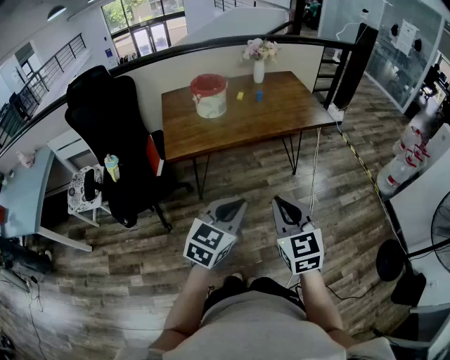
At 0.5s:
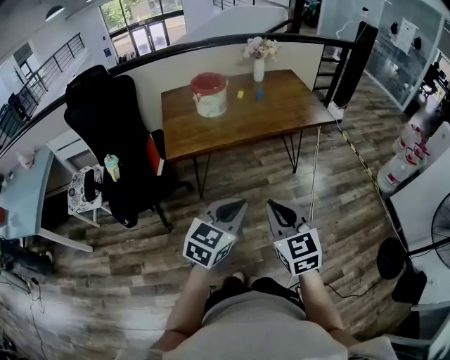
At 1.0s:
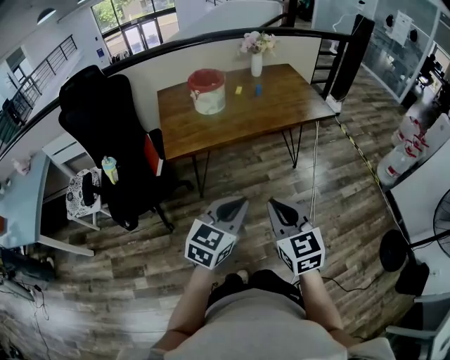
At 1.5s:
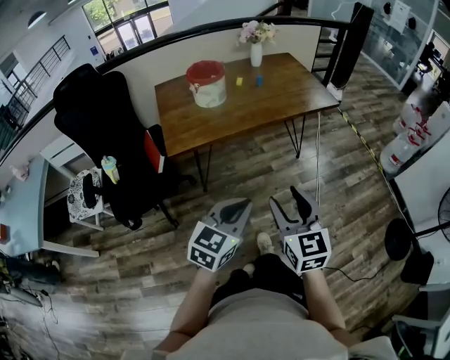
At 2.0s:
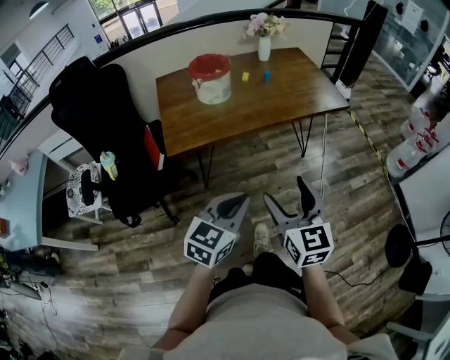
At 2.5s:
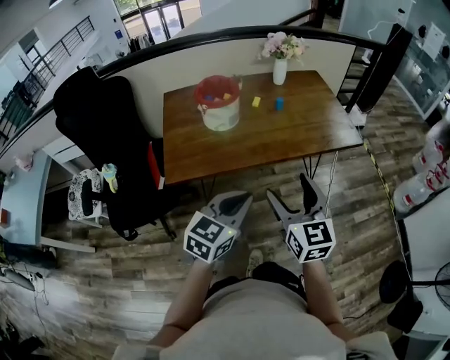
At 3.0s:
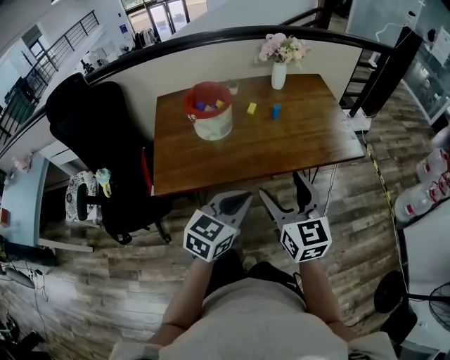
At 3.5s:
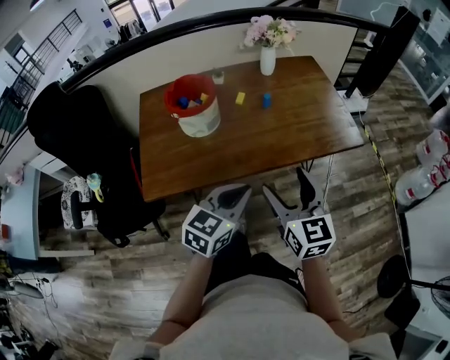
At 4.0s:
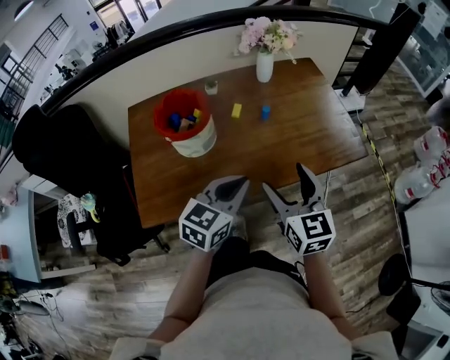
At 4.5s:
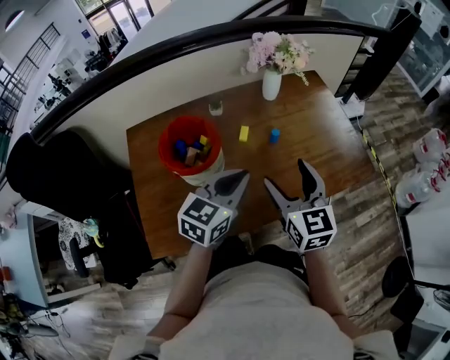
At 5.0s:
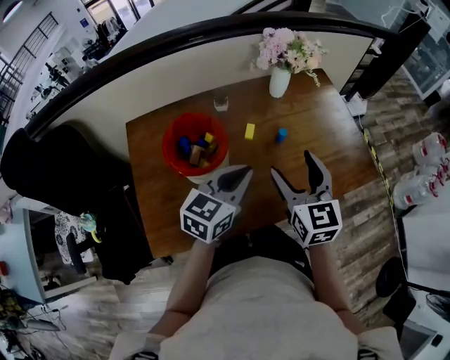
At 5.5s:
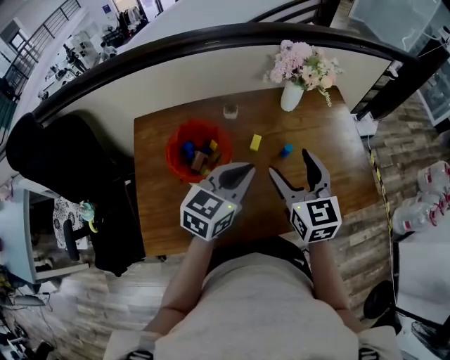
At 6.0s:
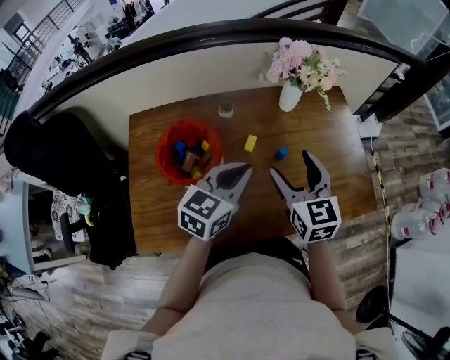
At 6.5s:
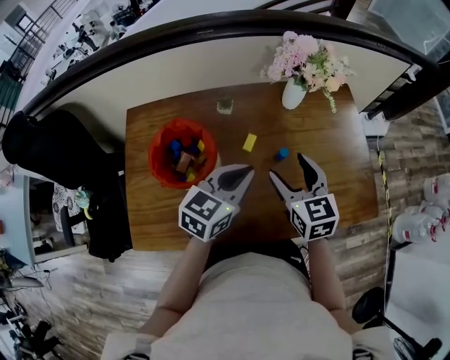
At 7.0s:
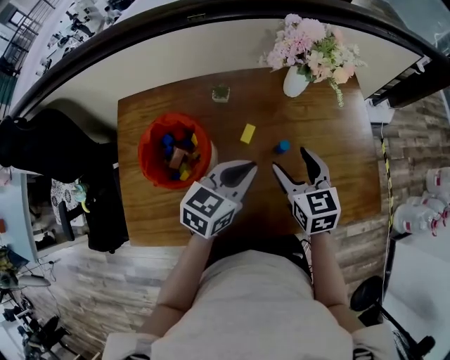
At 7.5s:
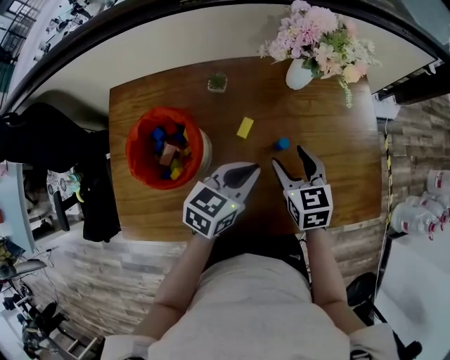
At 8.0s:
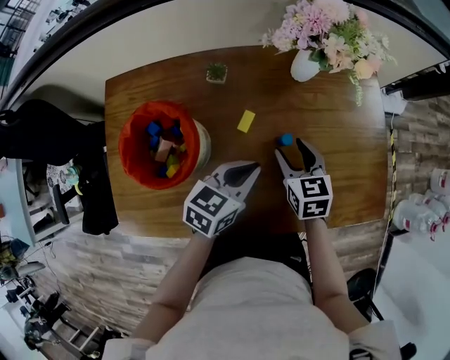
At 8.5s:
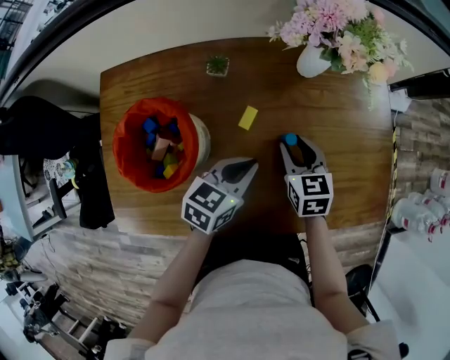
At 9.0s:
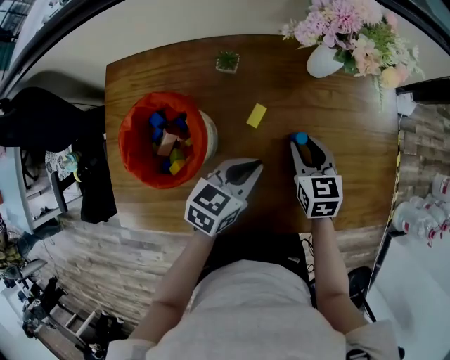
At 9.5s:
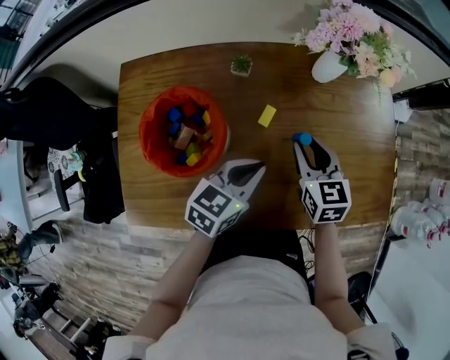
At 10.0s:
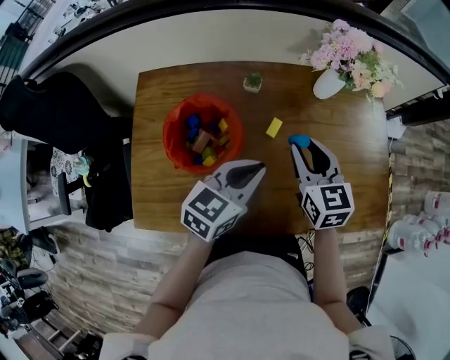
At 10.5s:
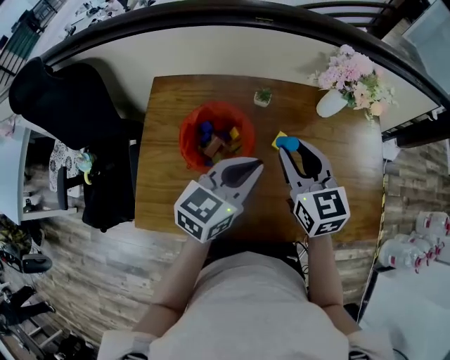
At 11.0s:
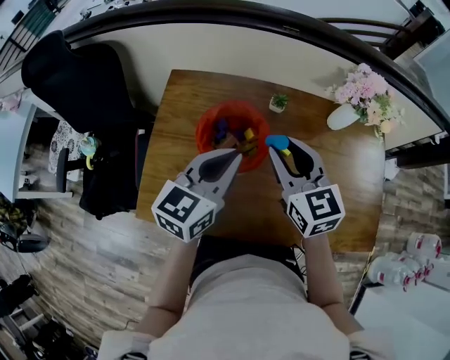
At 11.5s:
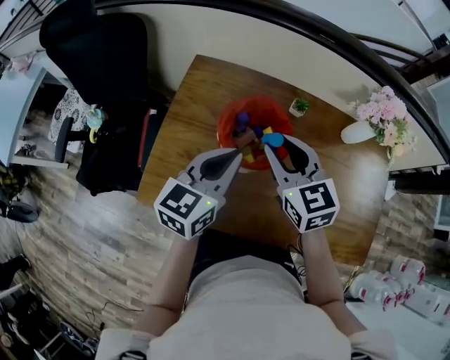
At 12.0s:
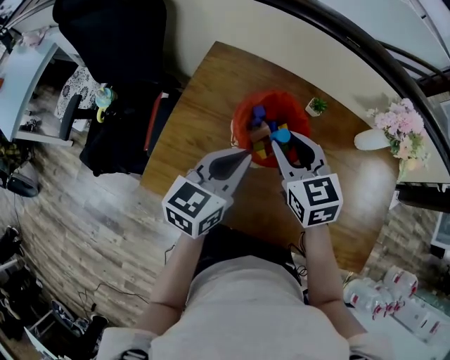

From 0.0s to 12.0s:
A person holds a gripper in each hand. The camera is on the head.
From 0.0s to 2.0s: The left gripper shifts approximately 10 cm forward and to the left. The right gripper travels forward by roughly 10 cm, and opens.
From 2.0s to 4.0s: The two grippers go roughly 35 cm forward.
From 4.0s to 6.0s: Both grippers move forward, approximately 20 cm.
From 6.0s to 8.0s: The right gripper travels downward and forward by some 20 cm, and swivels roughly 20 degrees. Meanwhile the left gripper heads downward, covering roughly 15 cm.
From 8.0s to 10.0s: Both grippers move upward and to the left, roughly 10 cm.
From 10.0s to 12.0s: The right gripper reaches about 10 cm upward, then returns, and swivels about 30 degrees; the left gripper changes place by about 20 cm, and swivels some 30 degrees.

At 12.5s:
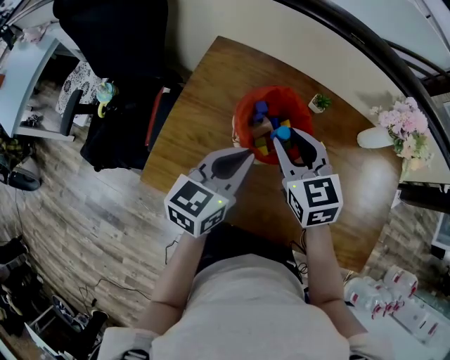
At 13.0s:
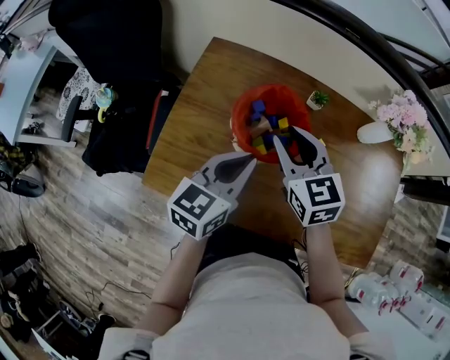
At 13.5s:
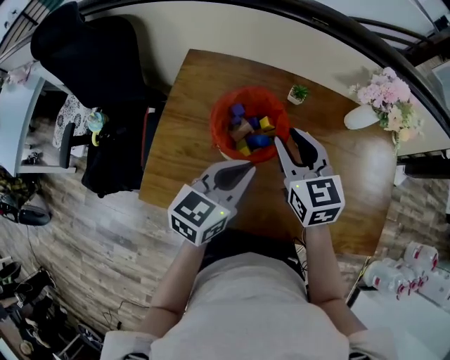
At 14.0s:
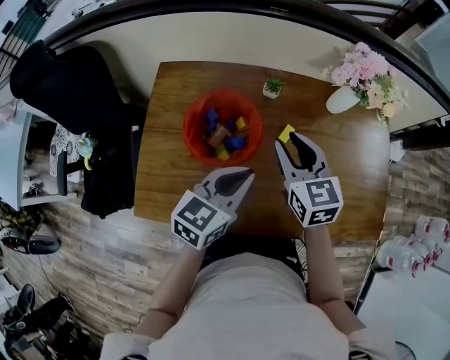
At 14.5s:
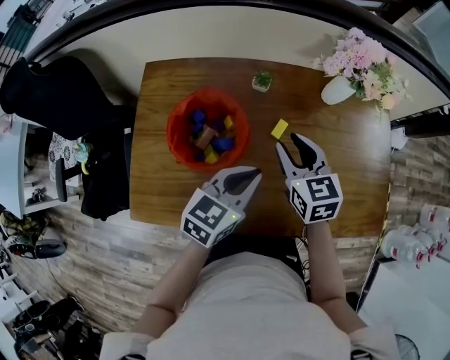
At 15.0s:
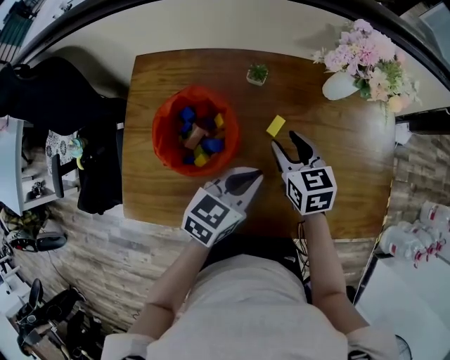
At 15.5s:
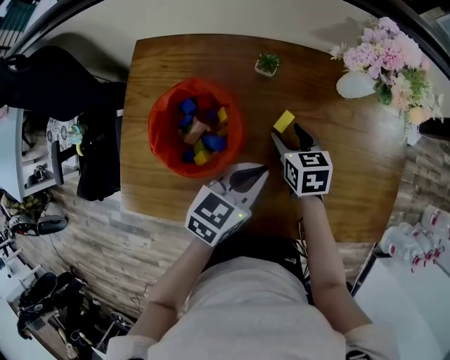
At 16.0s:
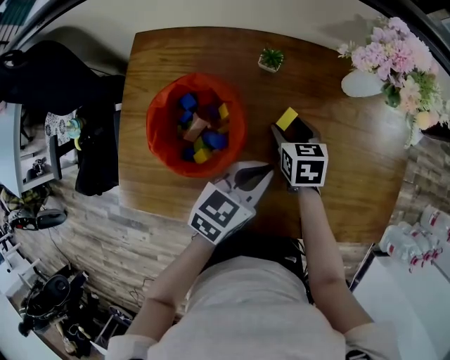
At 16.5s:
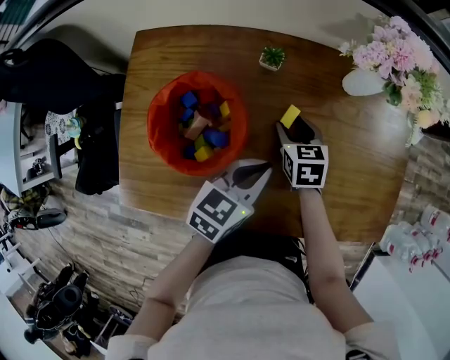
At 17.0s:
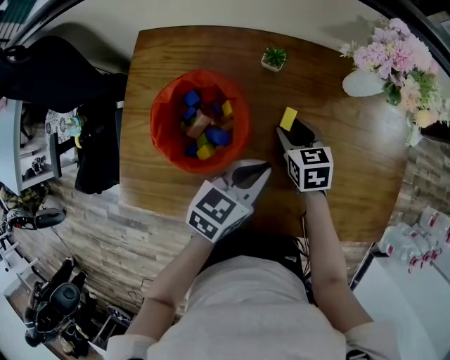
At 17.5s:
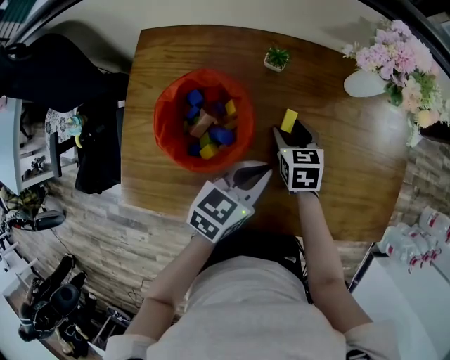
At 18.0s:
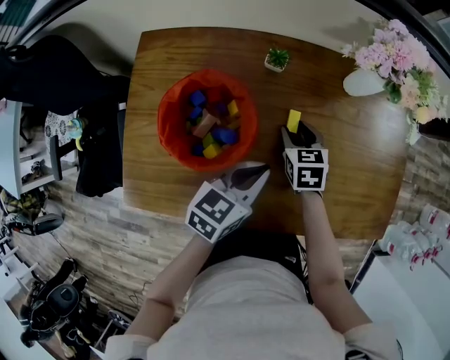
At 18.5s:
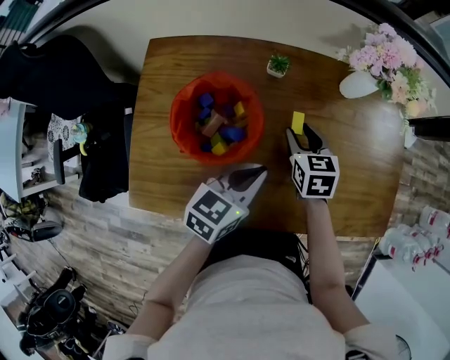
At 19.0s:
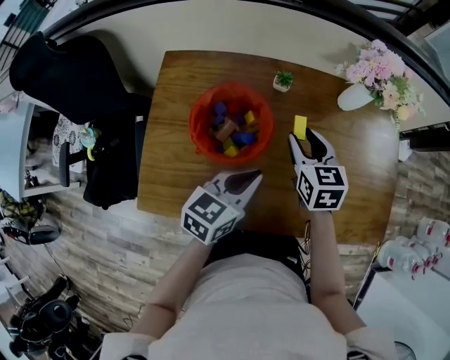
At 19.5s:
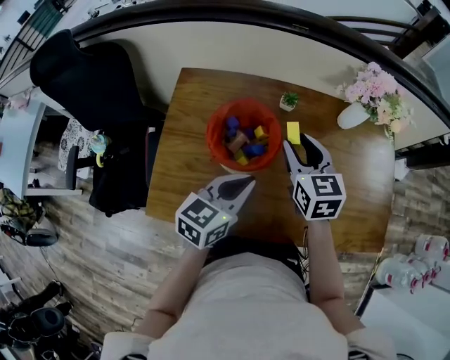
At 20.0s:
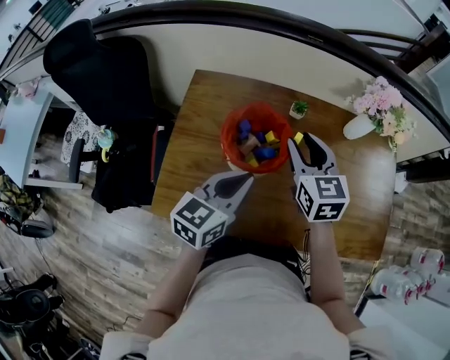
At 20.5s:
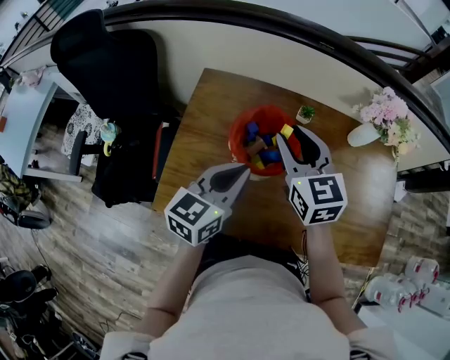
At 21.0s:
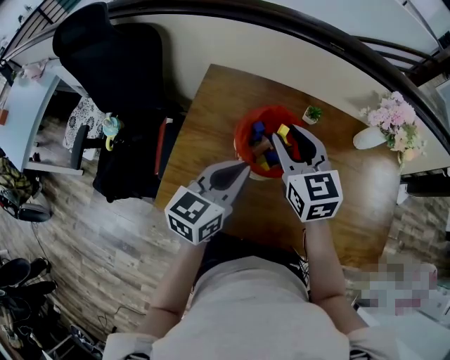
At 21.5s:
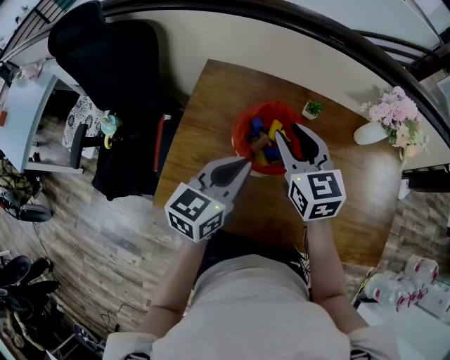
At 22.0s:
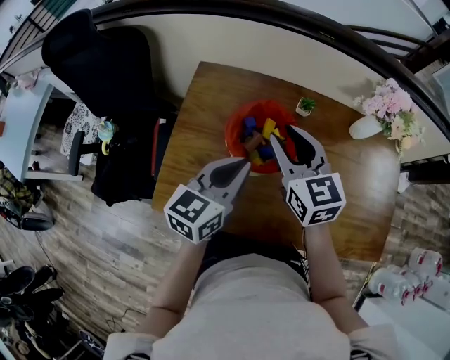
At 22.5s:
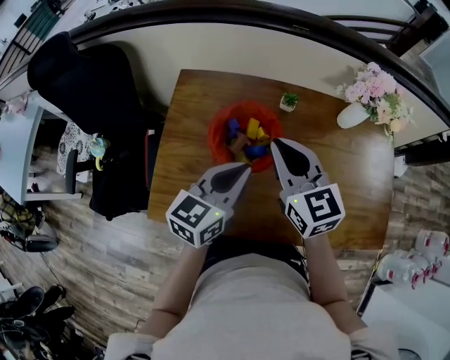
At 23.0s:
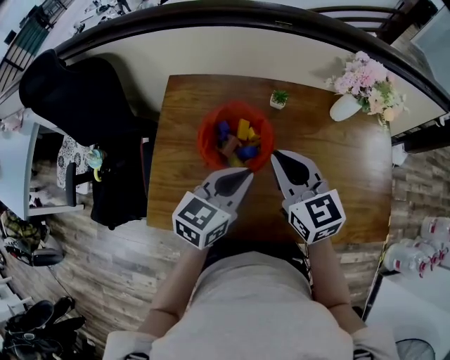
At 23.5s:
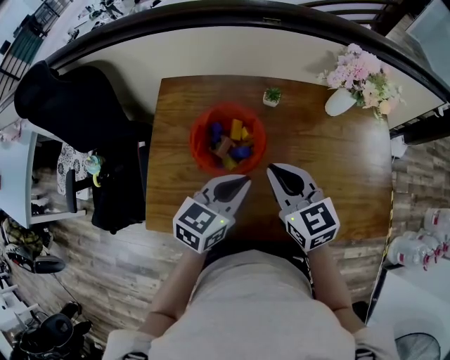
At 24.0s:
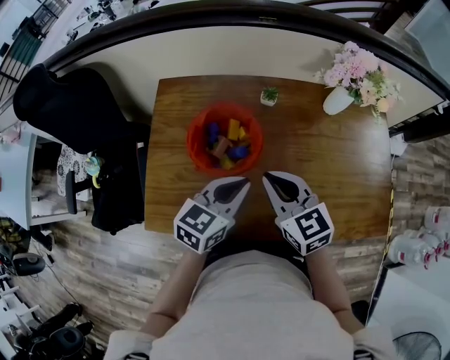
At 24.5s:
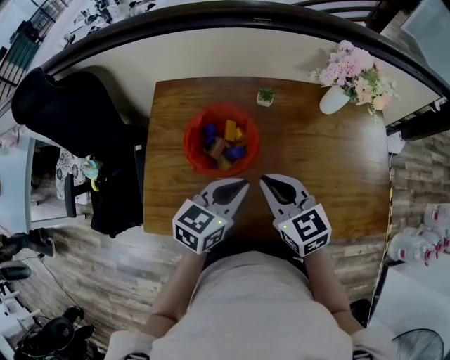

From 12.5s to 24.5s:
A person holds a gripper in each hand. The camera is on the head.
From 12.5s to 14.5s: Both grippers move to the right, roughly 15 cm. The right gripper changes its angle by some 20 degrees; the left gripper turns by about 30 degrees.
From 14.5s to 16.5s: The right gripper is displaced downward by roughly 15 cm, while the left gripper moves downward, approximately 5 cm.
From 16.5s to 18.5s: The left gripper changes place by some 5 cm. Meanwhile the right gripper goes roughly 5 cm upward.
From 18.5s to 20.5s: The left gripper heads to the left and upward, covering roughly 20 cm, and turns by some 20 degrees. Meanwhile the right gripper travels upward and to the left by roughly 25 cm, and swivels approximately 30 degrees.
From 20.5s to 22.5s: The right gripper closes its fingers.
From 22.5s to 24.5s: The right gripper shifts about 10 cm downward and backward. The left gripper is displaced to the right by roughly 5 cm.

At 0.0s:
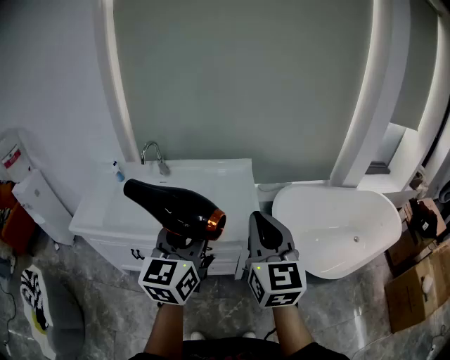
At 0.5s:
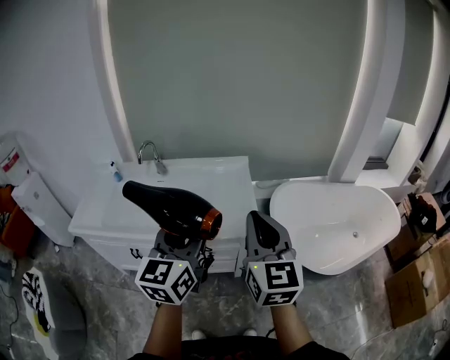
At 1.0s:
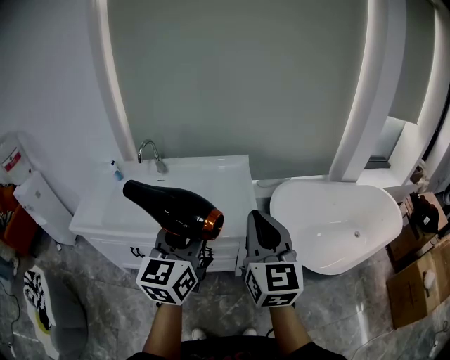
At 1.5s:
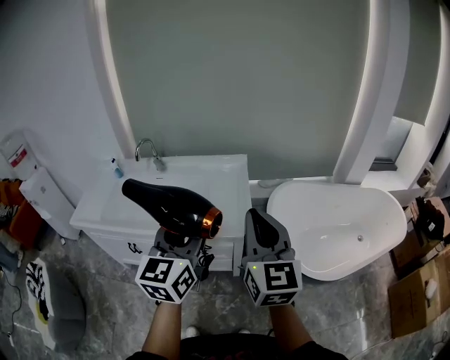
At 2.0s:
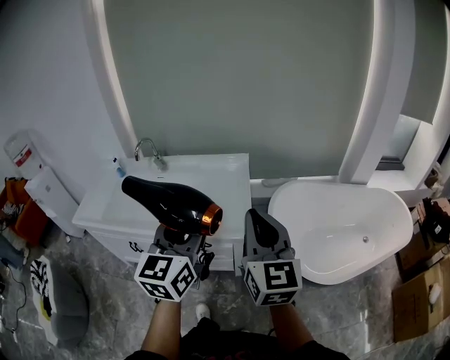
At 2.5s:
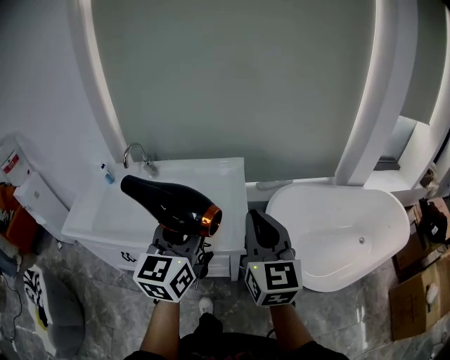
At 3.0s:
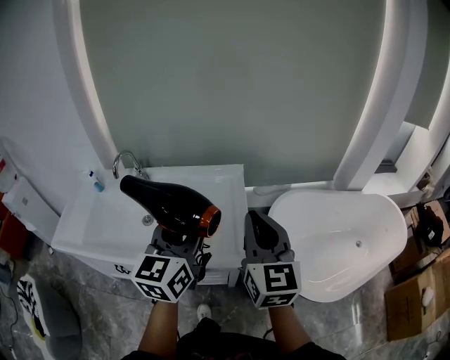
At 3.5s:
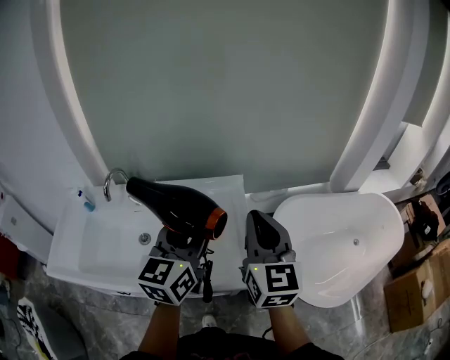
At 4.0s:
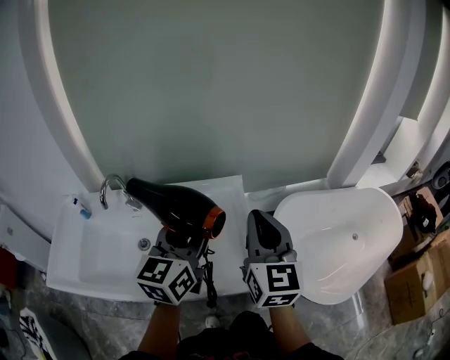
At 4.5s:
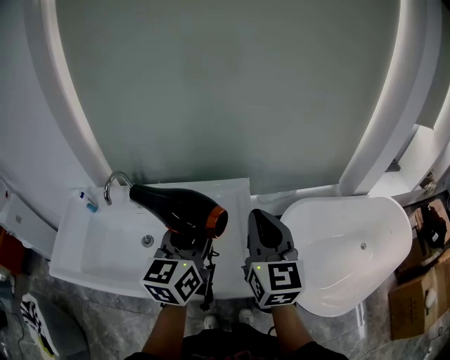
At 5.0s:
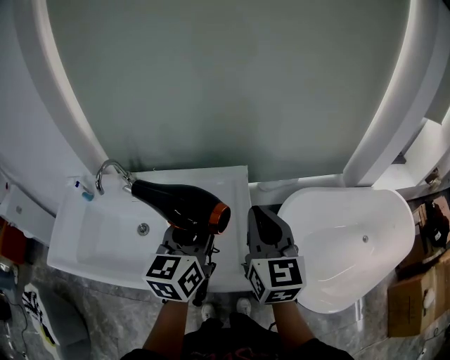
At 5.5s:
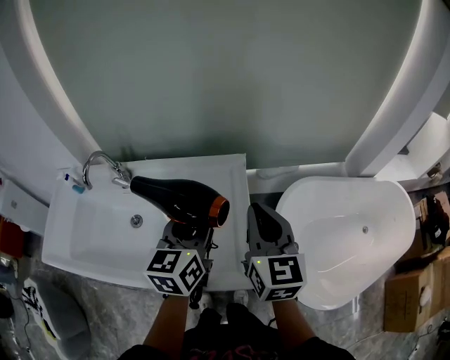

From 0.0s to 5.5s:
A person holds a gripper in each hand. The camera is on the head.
From 0.0s to 2.0s: Both grippers move to the right, roughly 10 cm.
From 2.0s to 3.5s: Both grippers travel together forward, some 20 cm.
From 3.5s to 5.5s: The right gripper shifts roughly 10 cm forward and downward; the left gripper heads downward and forward, covering roughly 15 cm.
